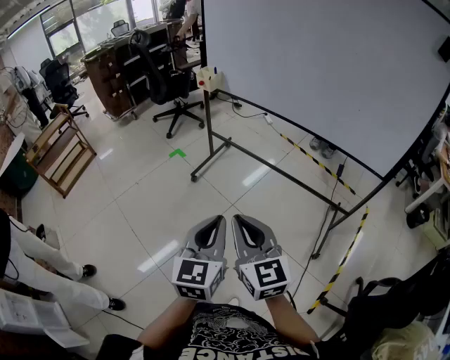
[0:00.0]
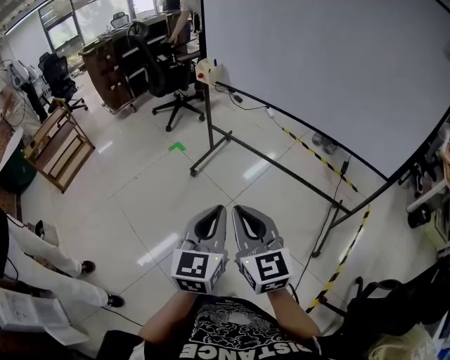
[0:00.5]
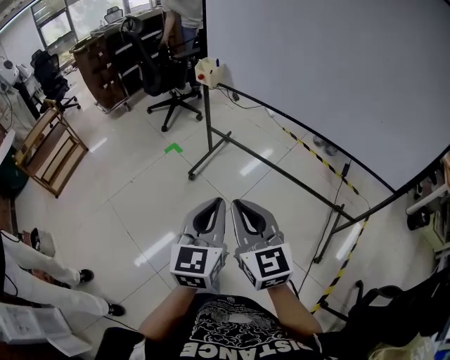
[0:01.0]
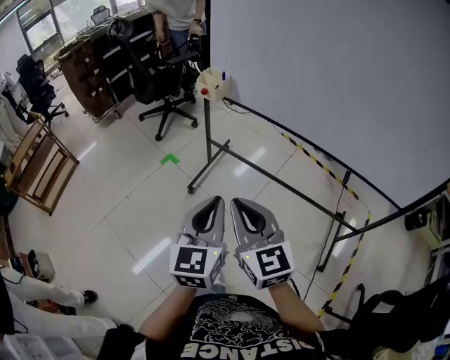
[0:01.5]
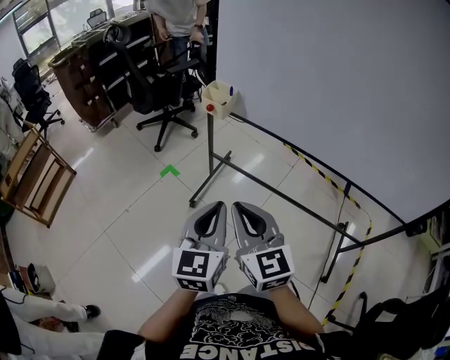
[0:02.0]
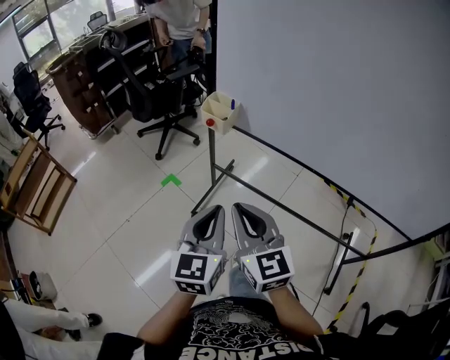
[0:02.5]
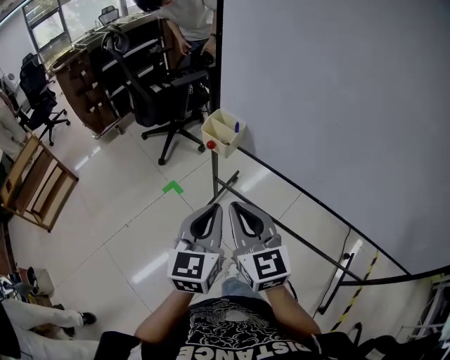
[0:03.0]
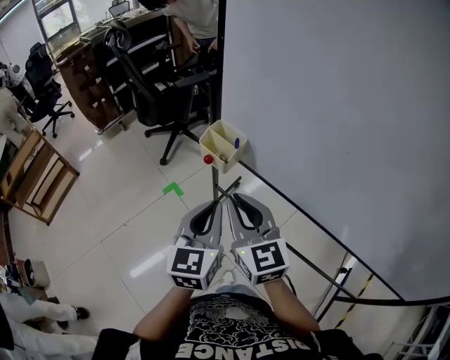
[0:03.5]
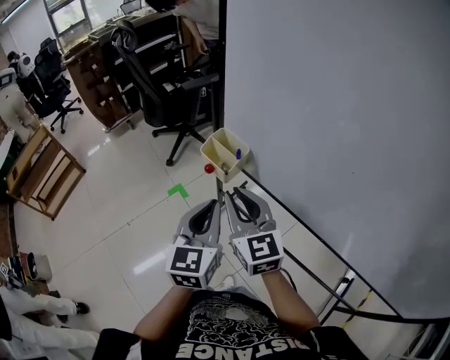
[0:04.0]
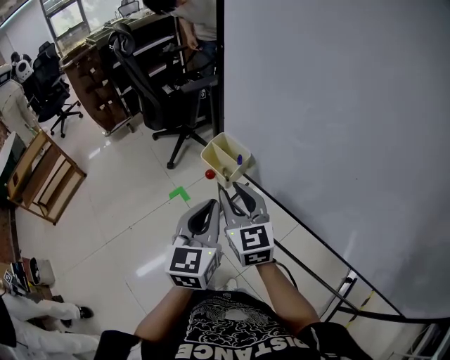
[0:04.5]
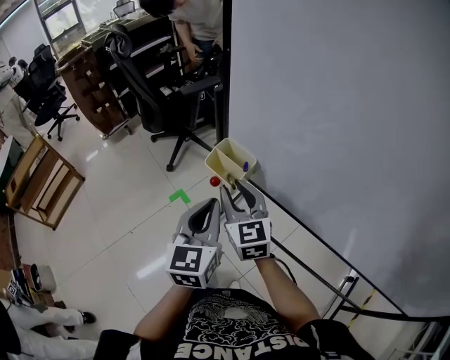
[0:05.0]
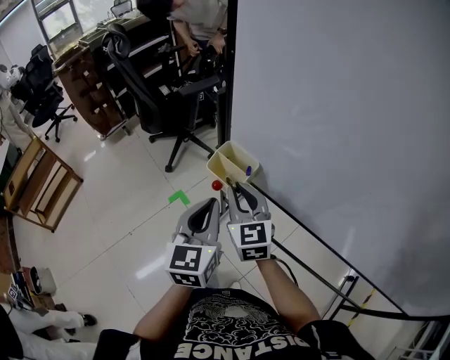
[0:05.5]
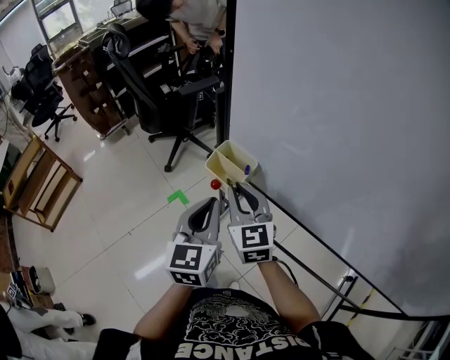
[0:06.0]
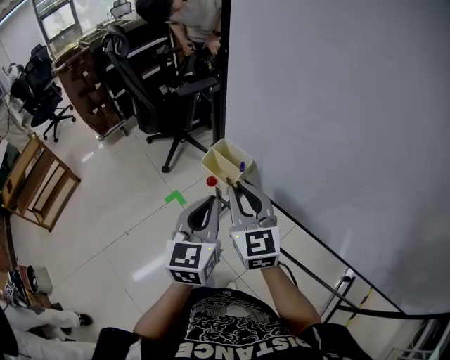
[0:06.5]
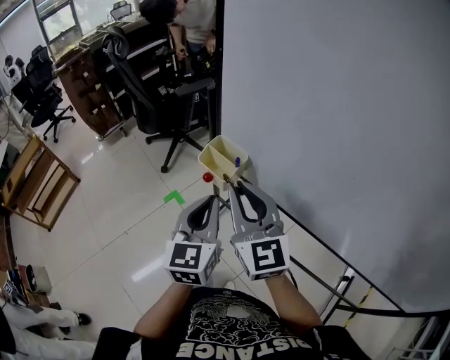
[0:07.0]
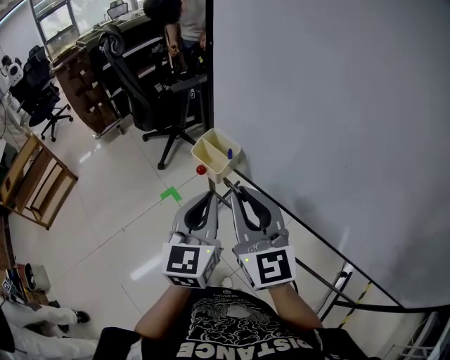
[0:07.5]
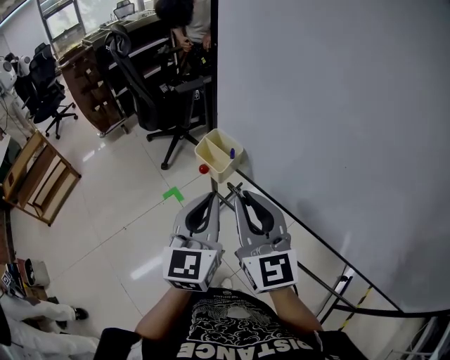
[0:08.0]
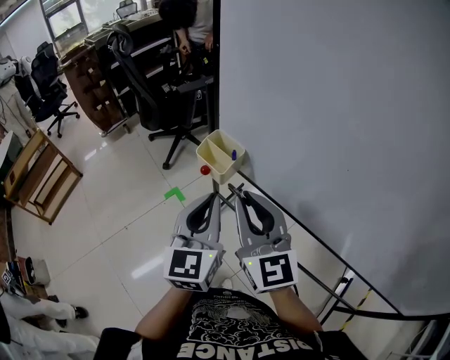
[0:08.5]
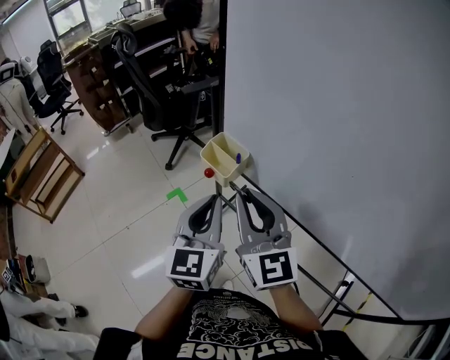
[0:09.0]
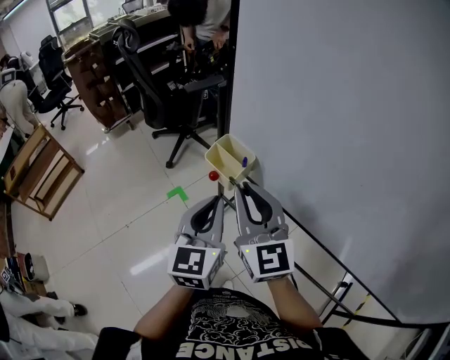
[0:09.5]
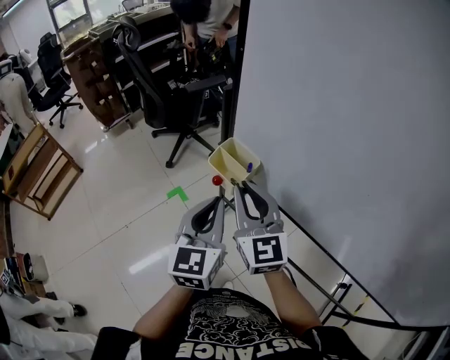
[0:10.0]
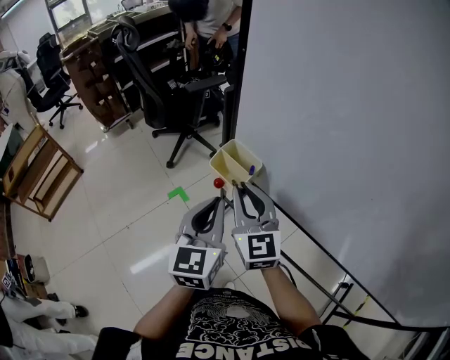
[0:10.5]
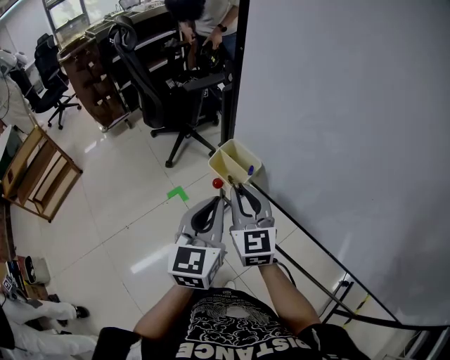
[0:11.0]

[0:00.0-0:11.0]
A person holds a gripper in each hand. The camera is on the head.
0:00.0 to 0:02.0: Both grippers move forward, roughly 40 cm.
0:02.0 to 0:03.5: Both grippers travel together forward, roughly 30 cm.
0:03.5 to 0:05.5: Both grippers travel together forward, some 10 cm.
0:05.5 to 0:07.5: The left gripper travels backward by some 5 cm. Meanwhile the right gripper shifts some 15 cm backward and upward.
0:07.5 to 0:09.0: The grippers stay close to where they were, moving slightly.
0:09.0 to 0:11.0: The right gripper goes some 15 cm downward and forward; the left gripper moves forward, some 5 cm.

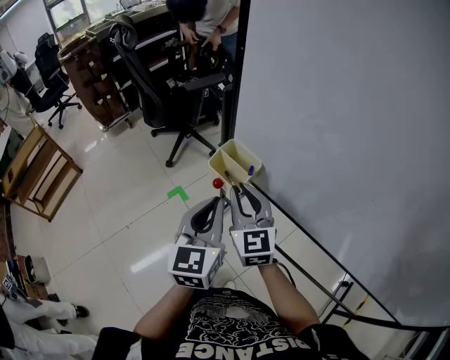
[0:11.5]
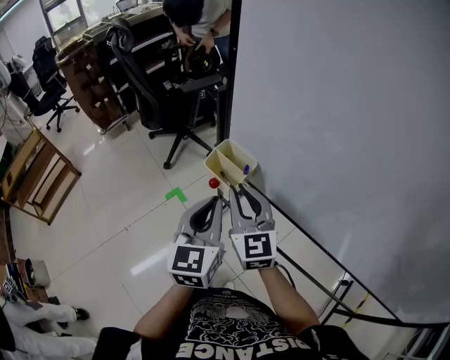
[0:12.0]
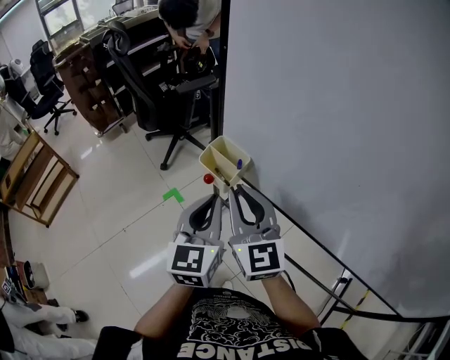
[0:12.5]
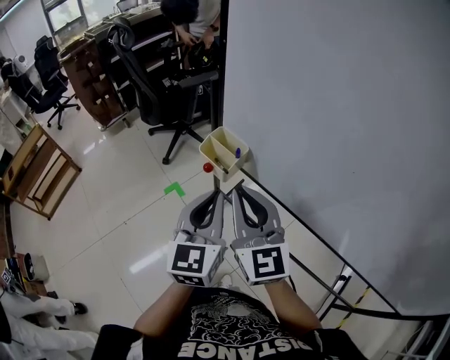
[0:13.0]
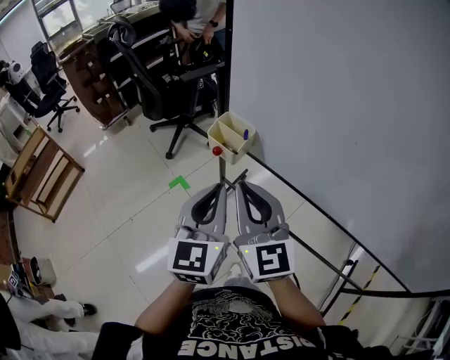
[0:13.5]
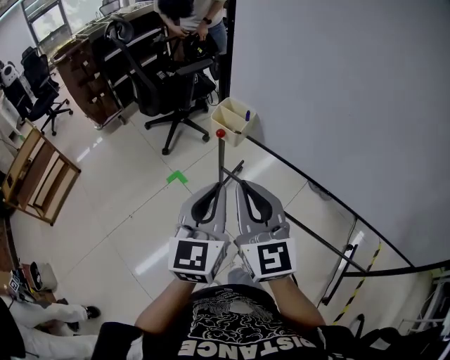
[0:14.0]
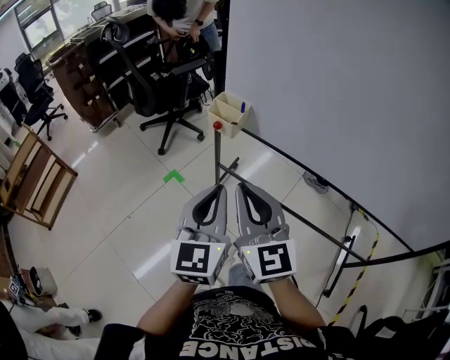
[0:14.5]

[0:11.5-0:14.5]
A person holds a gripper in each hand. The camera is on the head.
0:11.5 to 0:13.0: The right gripper heads backward and upward, covering roughly 15 cm. The left gripper goes some 5 cm backward.
0:13.0 to 0:14.5: Both grippers travel together backward, some 15 cm.

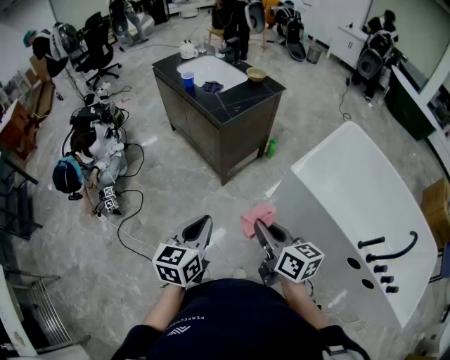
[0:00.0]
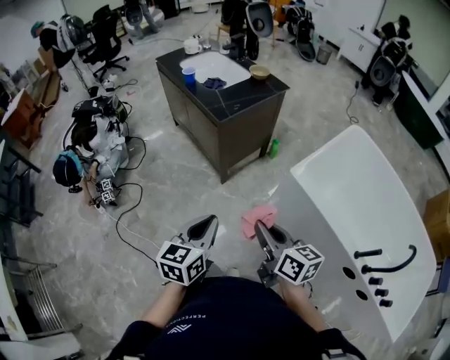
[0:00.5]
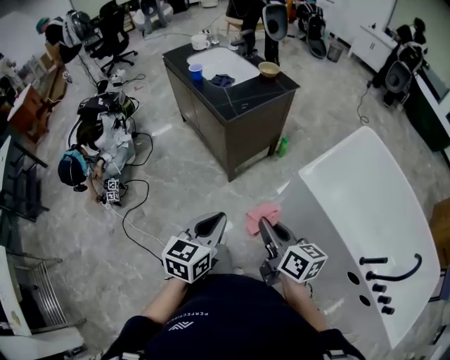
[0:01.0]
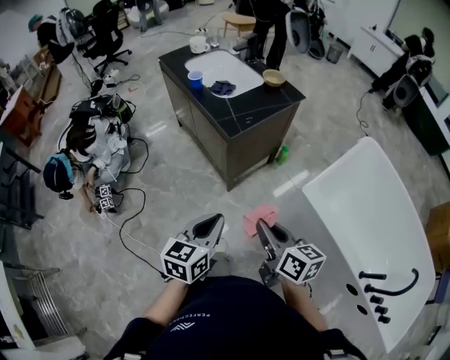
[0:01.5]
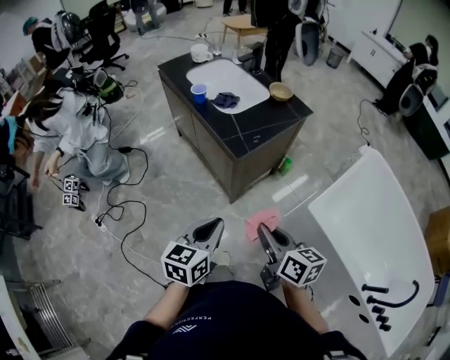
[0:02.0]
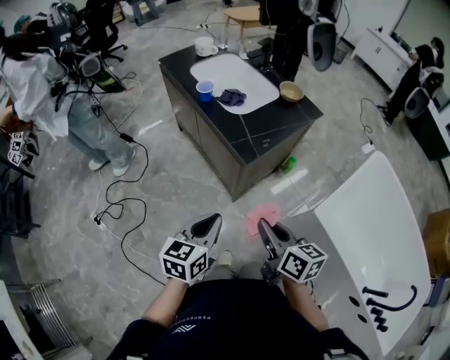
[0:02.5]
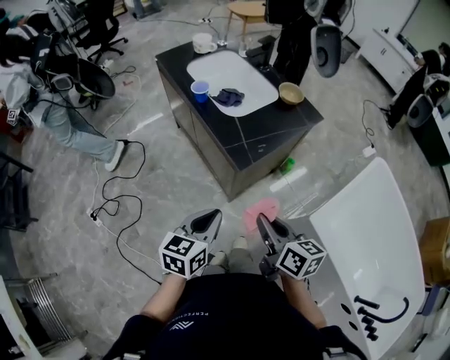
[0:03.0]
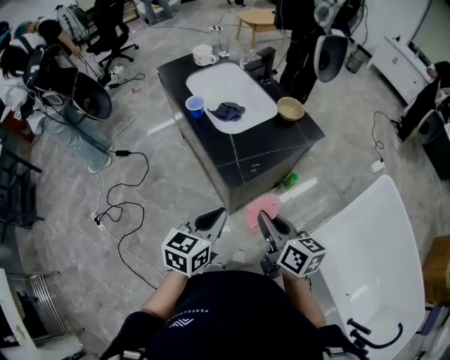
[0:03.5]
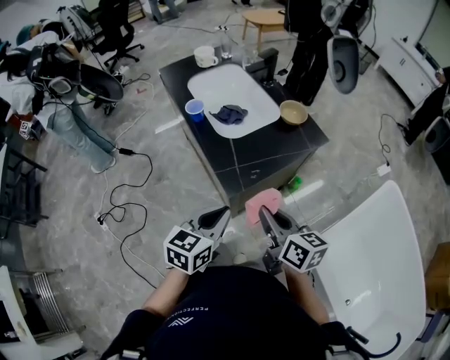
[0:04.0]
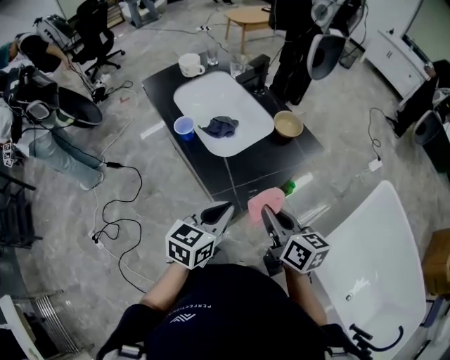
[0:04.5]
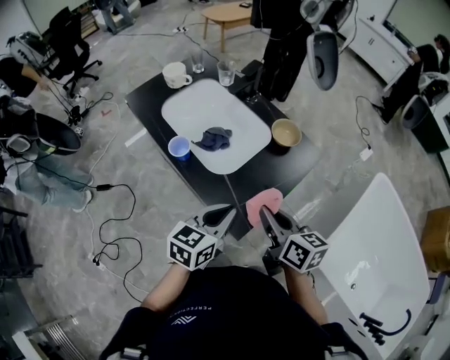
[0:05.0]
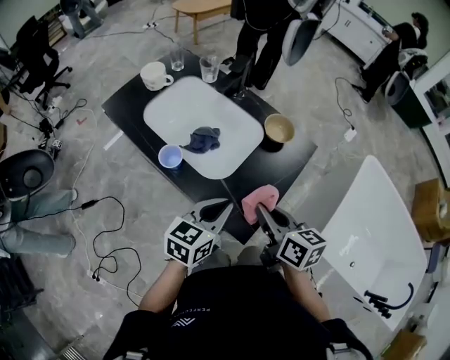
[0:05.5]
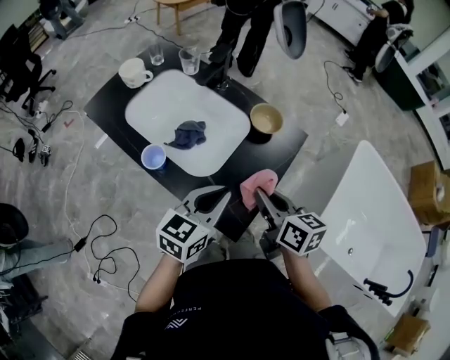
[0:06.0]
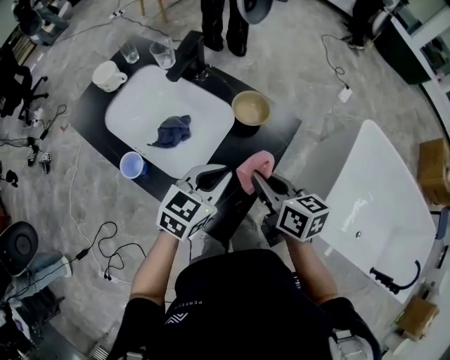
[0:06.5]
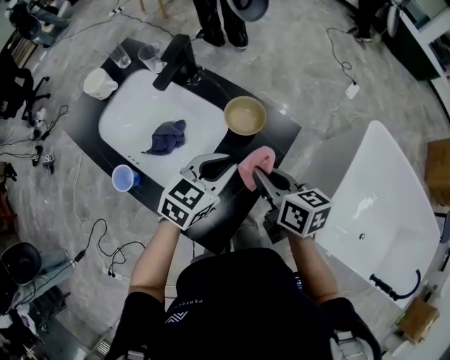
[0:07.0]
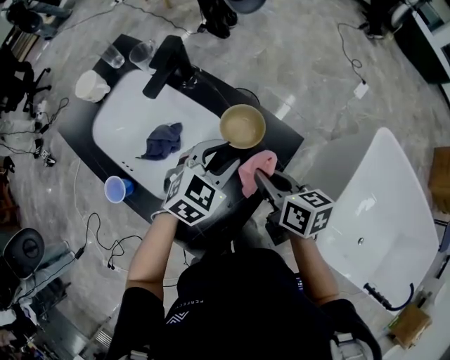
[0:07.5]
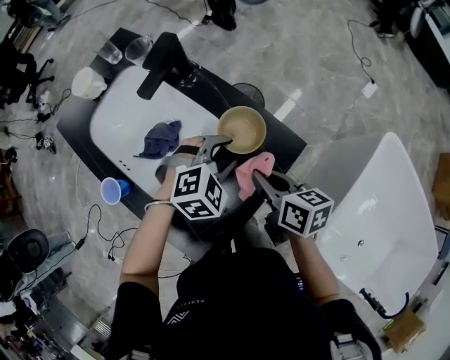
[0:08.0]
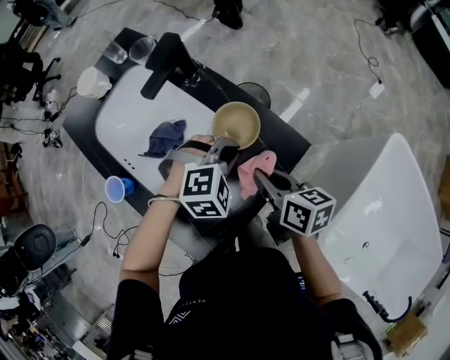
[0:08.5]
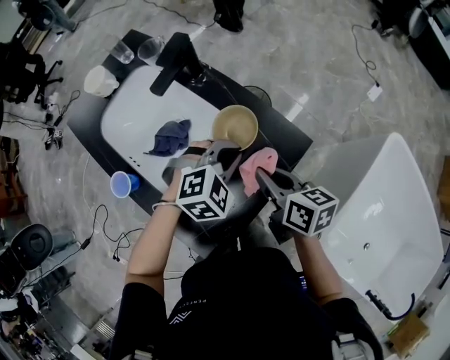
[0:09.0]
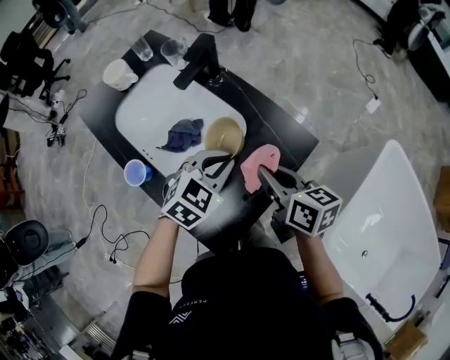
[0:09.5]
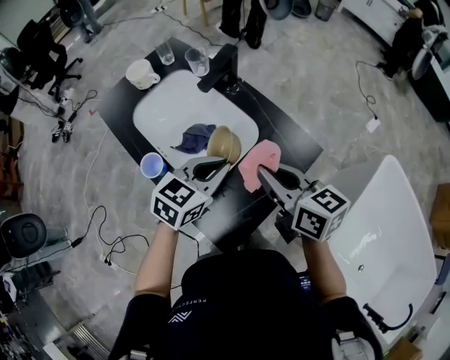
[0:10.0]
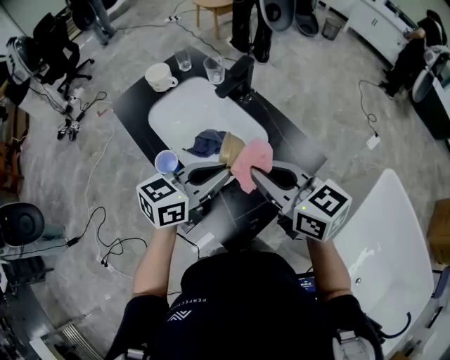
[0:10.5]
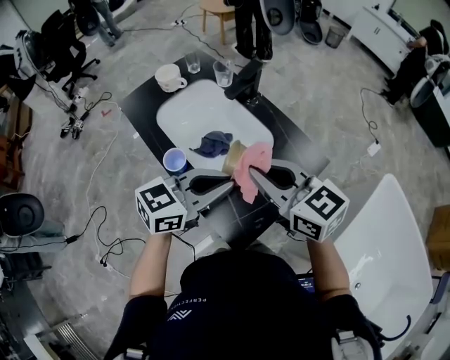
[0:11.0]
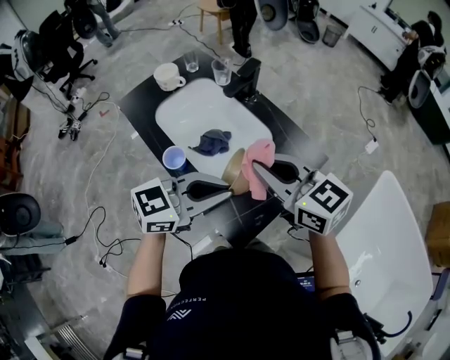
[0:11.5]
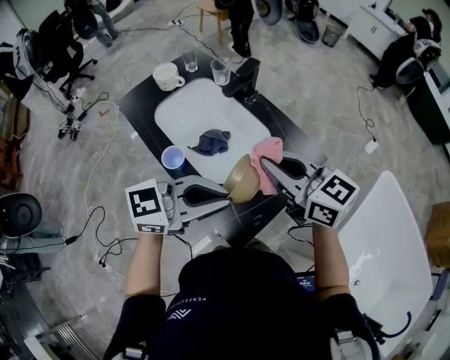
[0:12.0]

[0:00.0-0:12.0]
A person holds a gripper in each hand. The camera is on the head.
0:00.0 to 0:02.0: Both grippers move forward, some 20 cm.
0:02.0 to 0:04.0: The two grippers go approximately 20 cm forward.
0:04.0 to 0:06.0: The right gripper ends up some 20 cm from where it was, and turns by roughly 20 degrees. Meanwhile the left gripper changes place by about 20 cm, and rotates some 30 degrees.
0:06.0 to 0:08.0: The grippers both shift forward, downward and to the right by about 20 cm. The left gripper points its fingers some 40 degrees further downward, and opens its fingers.
0:08.0 to 0:10.0: The right gripper goes some 15 cm upward and to the left, and changes its angle by roughly 30 degrees. The left gripper shifts roughly 15 cm to the left, upward and backward, twists approximately 40 degrees counterclockwise, seen from behind, and closes its fingers.
0:10.0 to 0:12.0: The left gripper changes place by some 15 cm, and swivels some 40 degrees. The right gripper moves upward, some 5 cm, and rotates roughly 20 degrees.

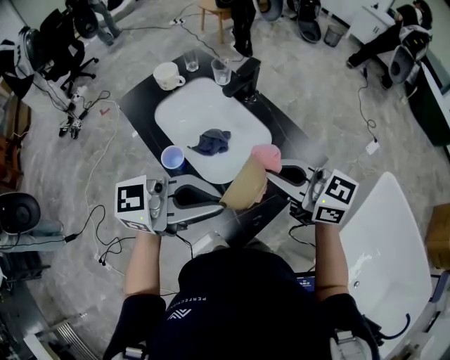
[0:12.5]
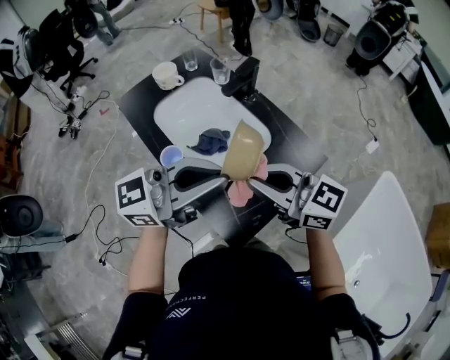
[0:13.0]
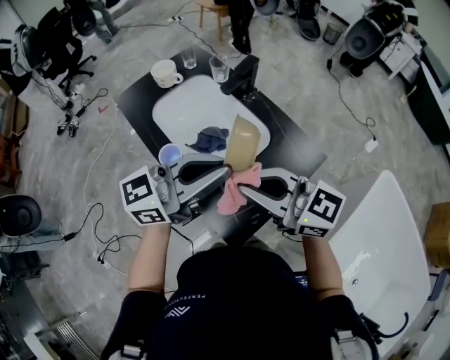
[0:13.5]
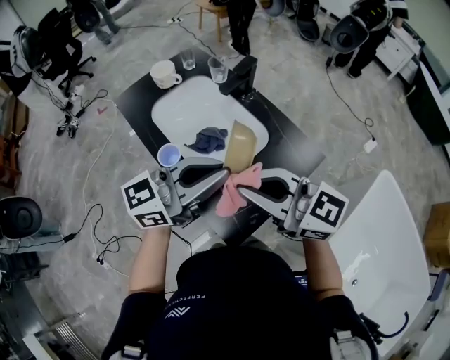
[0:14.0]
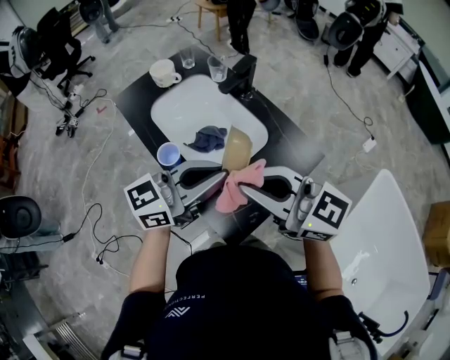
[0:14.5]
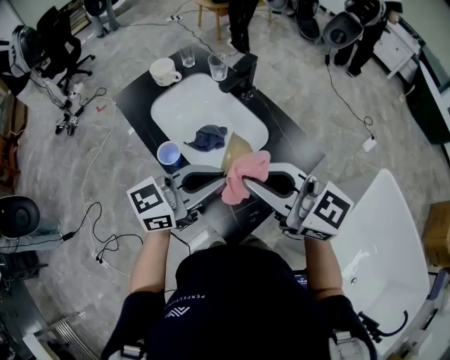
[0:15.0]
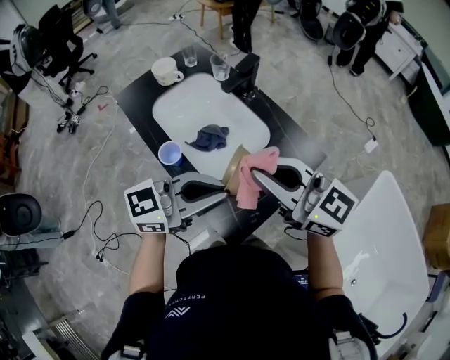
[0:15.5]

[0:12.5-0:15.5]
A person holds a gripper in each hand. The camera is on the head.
0:12.5 to 0:14.0: The right gripper shifts by approximately 5 cm. Meanwhile the left gripper changes place by some 5 cm, and turns by some 20 degrees.
0:14.0 to 0:15.5: The left gripper moves approximately 5 cm.
